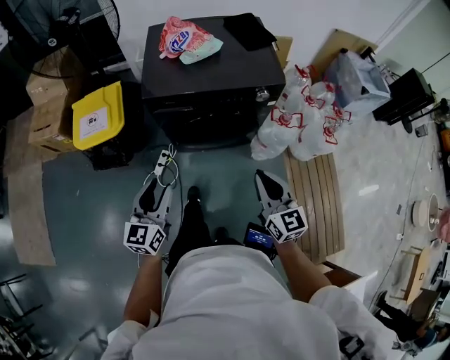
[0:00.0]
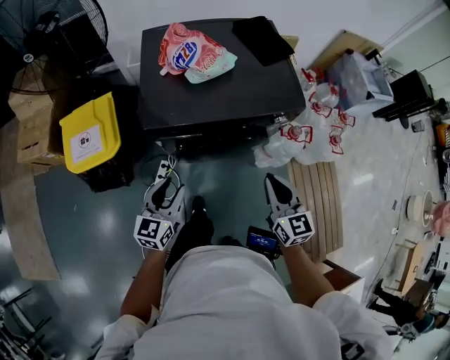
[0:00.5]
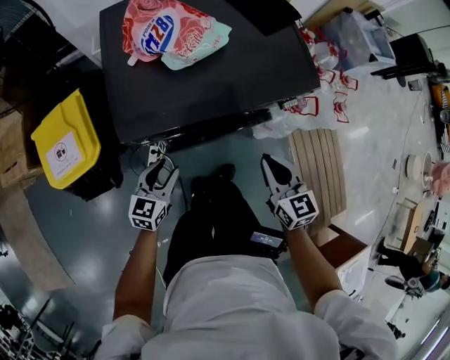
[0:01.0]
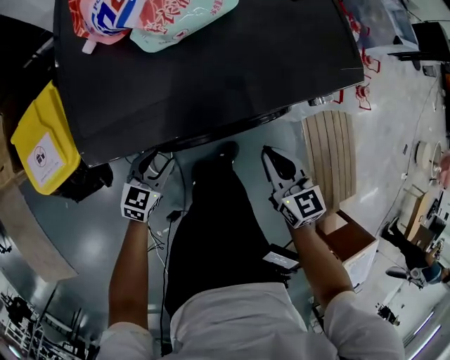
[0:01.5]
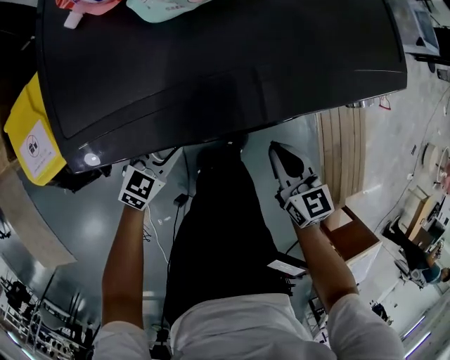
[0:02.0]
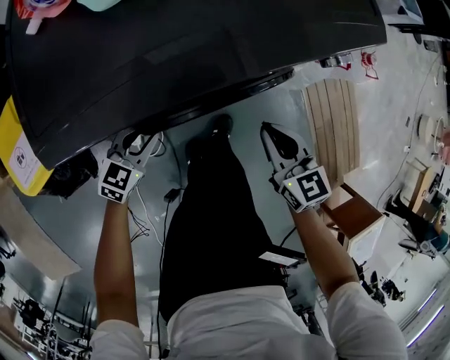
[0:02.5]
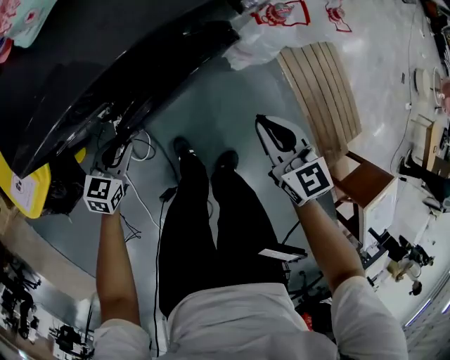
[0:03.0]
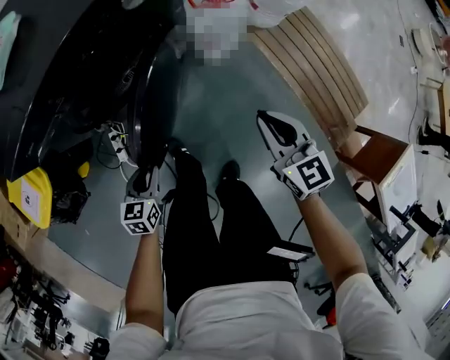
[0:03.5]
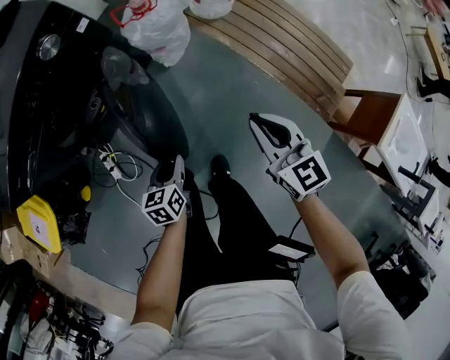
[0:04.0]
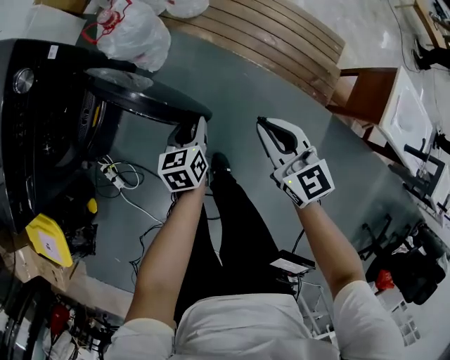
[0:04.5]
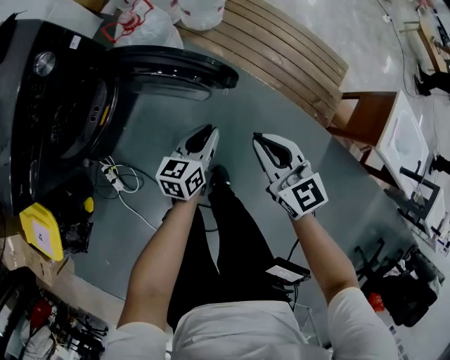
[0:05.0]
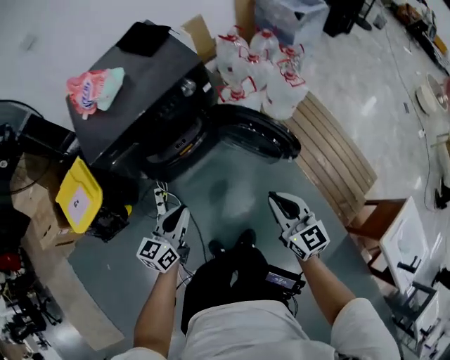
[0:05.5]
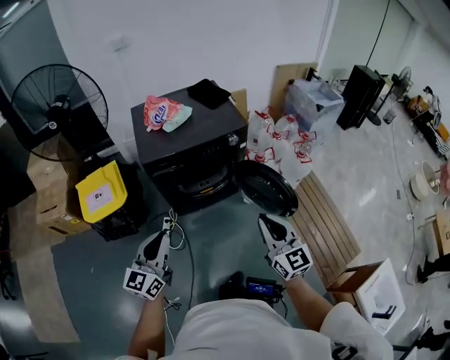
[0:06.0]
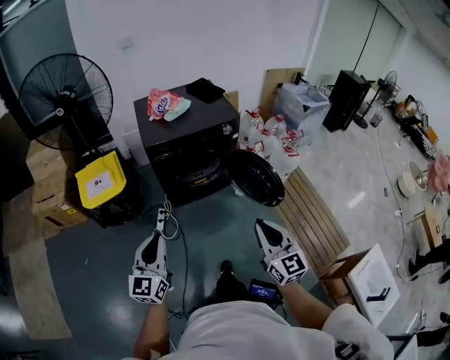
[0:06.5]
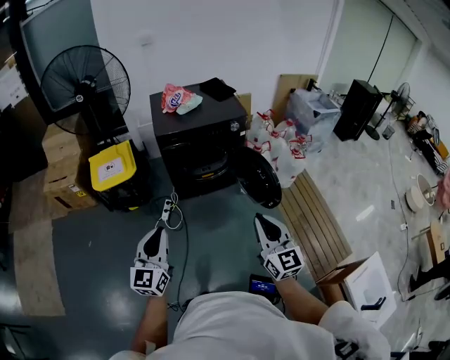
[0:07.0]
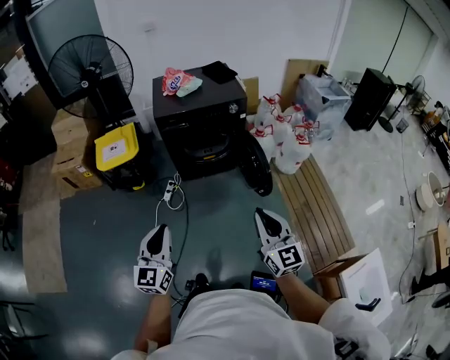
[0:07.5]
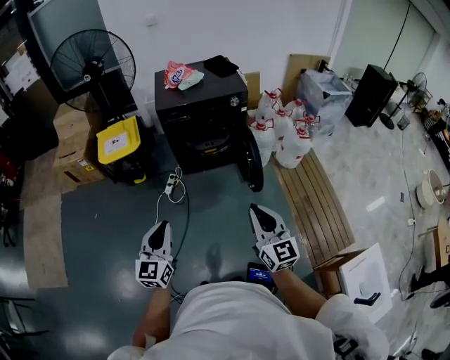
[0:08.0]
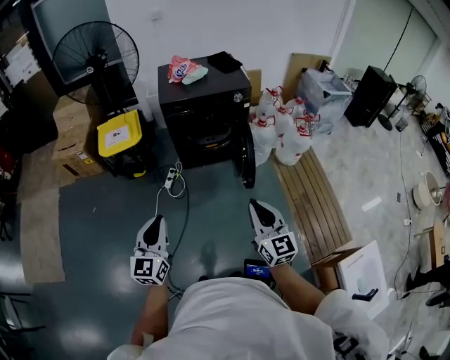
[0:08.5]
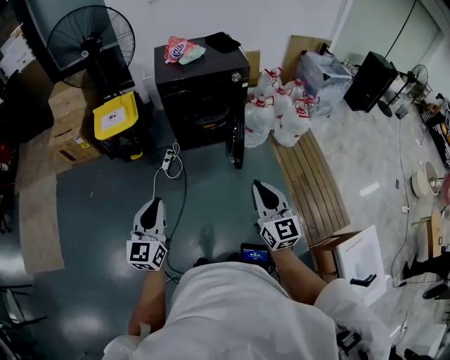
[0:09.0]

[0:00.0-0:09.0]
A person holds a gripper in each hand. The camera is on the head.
0:00.0 to 0:02.0: The two grippers go about 40 cm downward and forward. The right gripper rotates some 30 degrees; the left gripper rotates roughly 50 degrees.
0:02.0 to 0:04.5: The two grippers travel together, about 60 cm. The right gripper changes its angle by about 40 degrees.
0:04.5 to 0:07.0: The left gripper changes place by about 80 cm, and points its fingers approximately 40 degrees further upward. Meanwhile the right gripper heads upward, covering roughly 40 cm, and rotates about 40 degrees.
0:07.0 to 0:09.0: Both grippers move backward, roughly 10 cm.

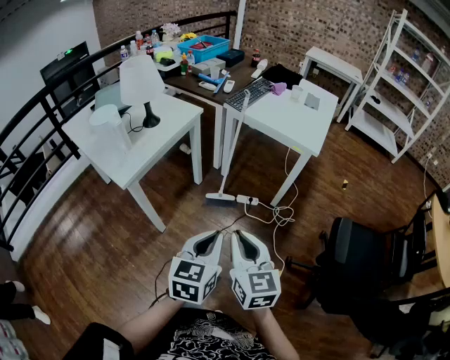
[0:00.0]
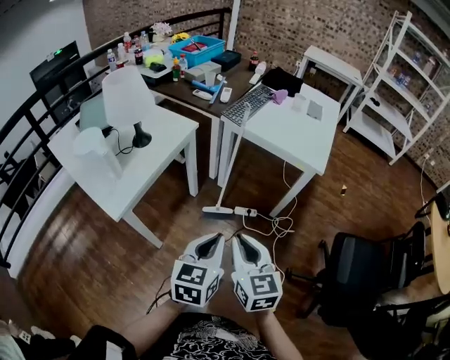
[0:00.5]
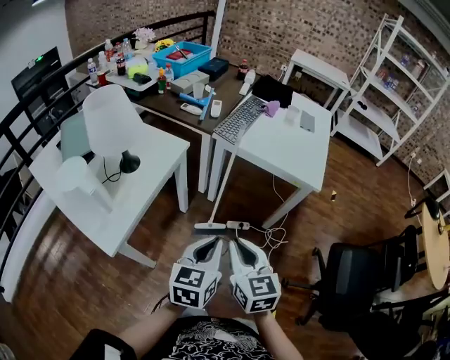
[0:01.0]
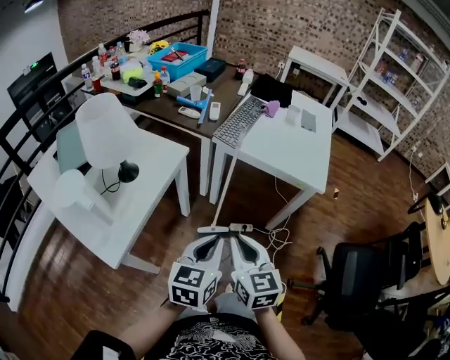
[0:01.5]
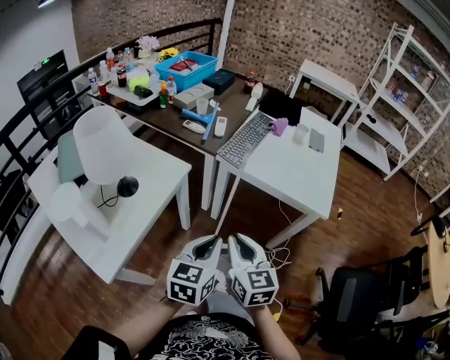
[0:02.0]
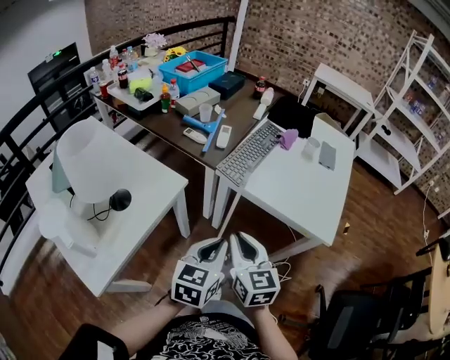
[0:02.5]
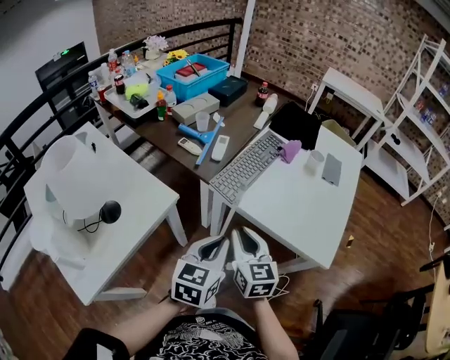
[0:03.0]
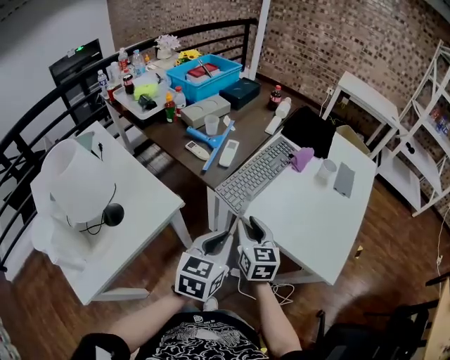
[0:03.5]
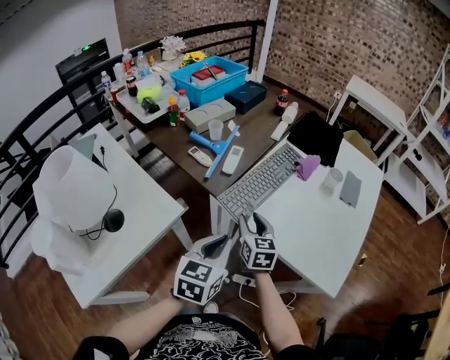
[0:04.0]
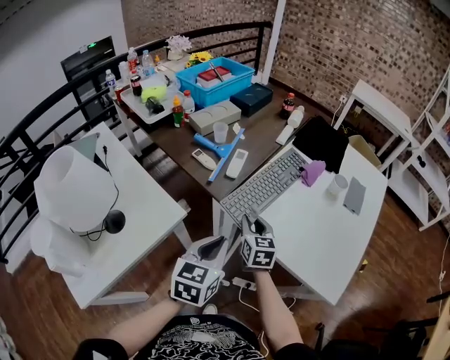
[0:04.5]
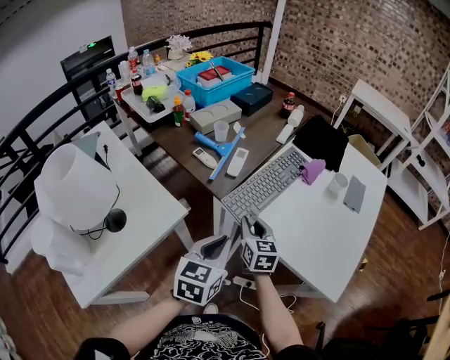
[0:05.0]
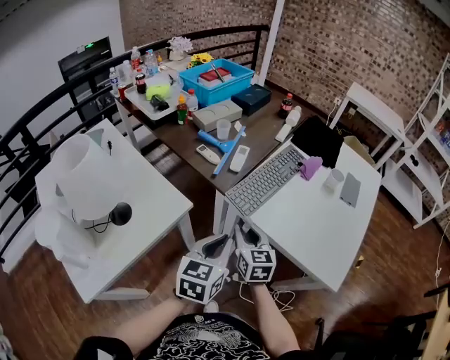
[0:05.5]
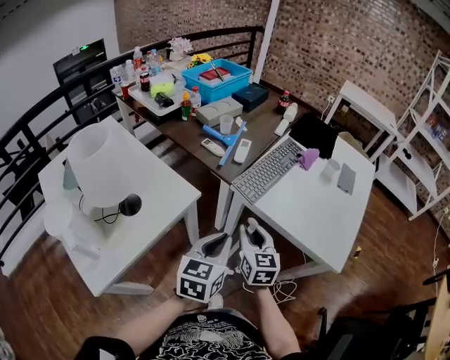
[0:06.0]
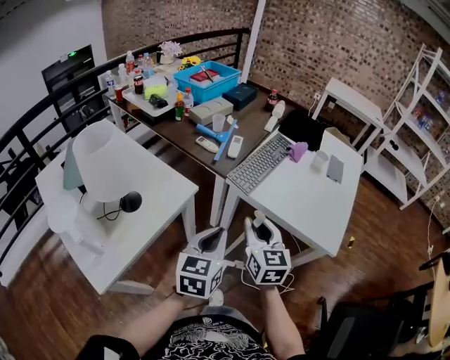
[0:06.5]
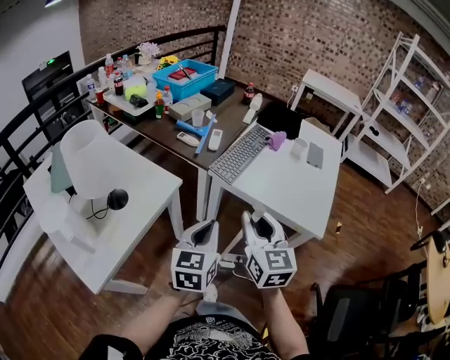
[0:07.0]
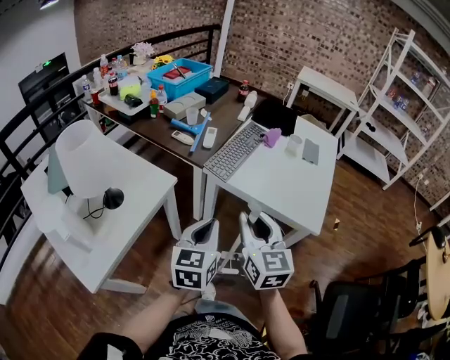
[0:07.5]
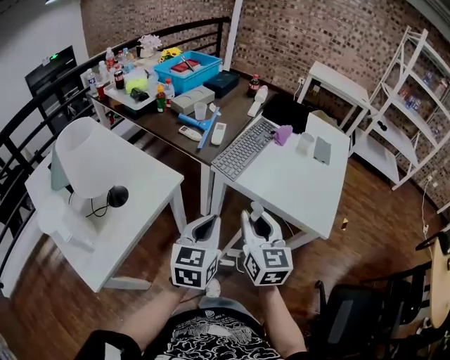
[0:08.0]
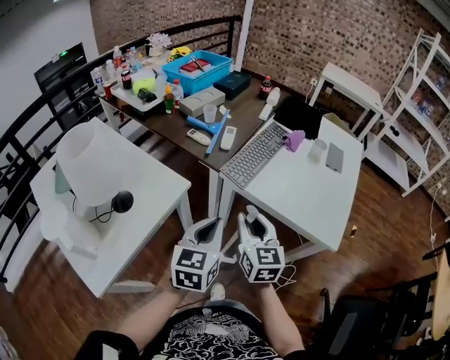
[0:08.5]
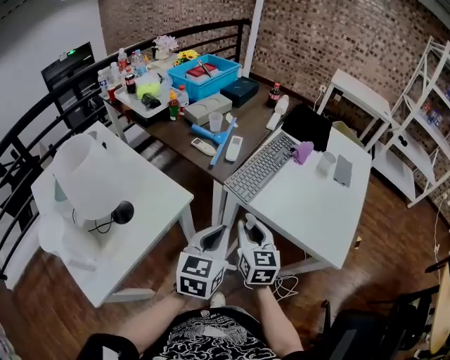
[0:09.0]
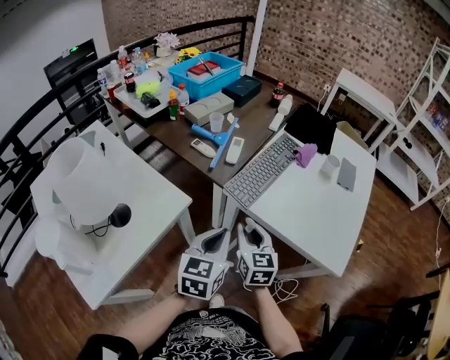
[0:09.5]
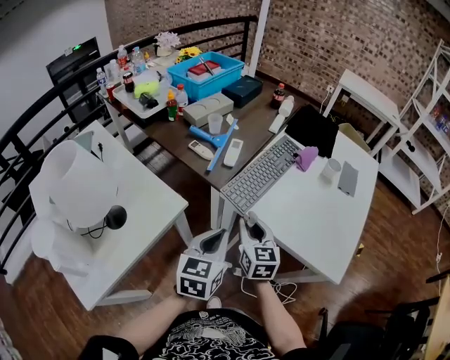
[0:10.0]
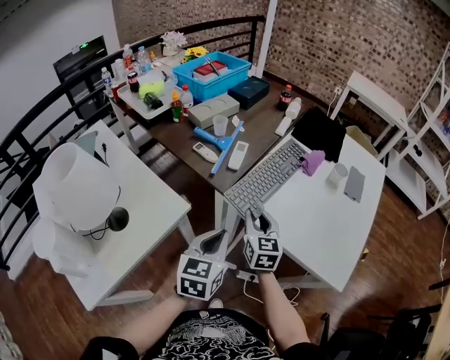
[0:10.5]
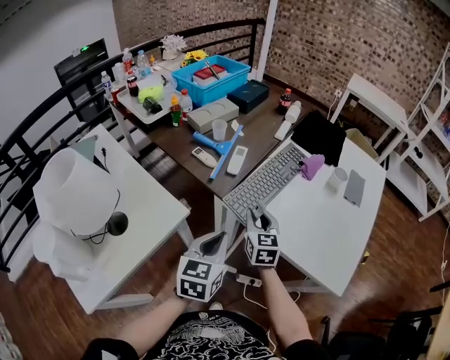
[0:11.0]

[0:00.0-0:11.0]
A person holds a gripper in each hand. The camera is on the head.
0:00.0 to 0:02.0: The grippers both shift forward by some 35 cm.
0:02.0 to 0:03.5: The grippers both shift forward by roughly 25 cm.
0:03.5 to 0:05.5: The right gripper reaches about 10 cm forward, then returns.
0:05.5 to 0:07.5: The left gripper moves backward, about 15 cm. Meanwhile the right gripper moves backward and upward, some 25 cm.
0:07.5 to 0:09.0: The left gripper shifts approximately 10 cm forward, while the right gripper travels forward and downward by roughly 20 cm.
0:09.0 to 0:11.0: The right gripper travels forward by about 15 cm, while the left gripper travels forward by roughly 10 cm.

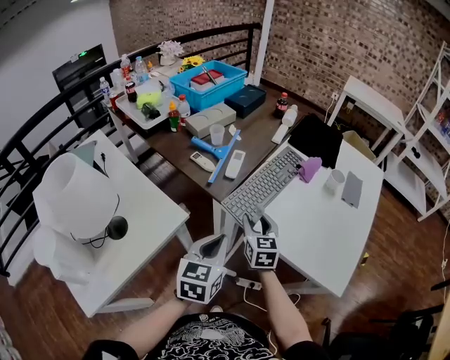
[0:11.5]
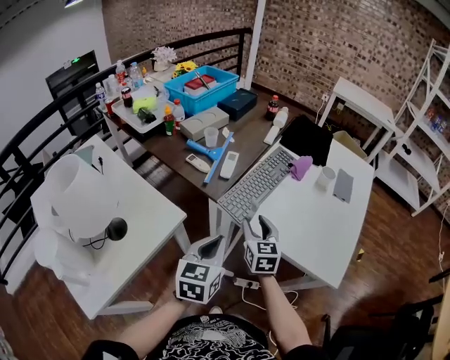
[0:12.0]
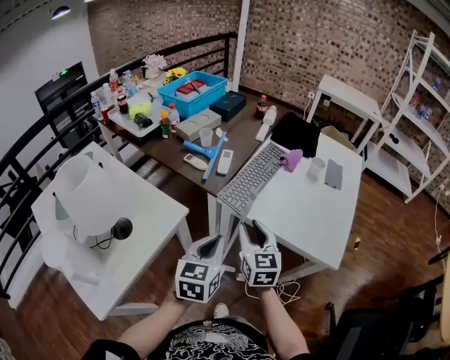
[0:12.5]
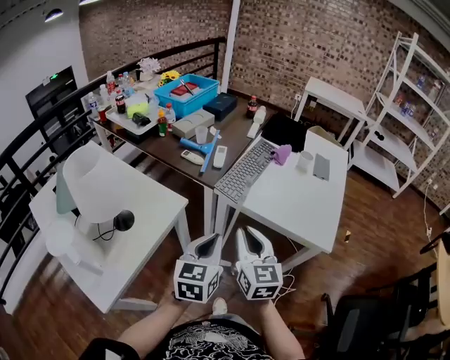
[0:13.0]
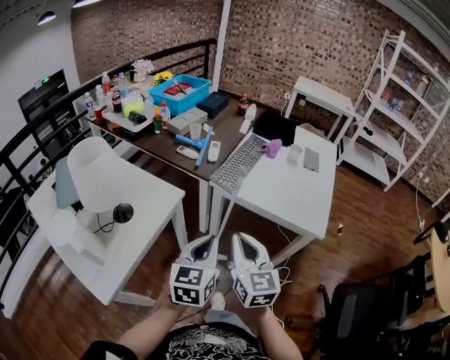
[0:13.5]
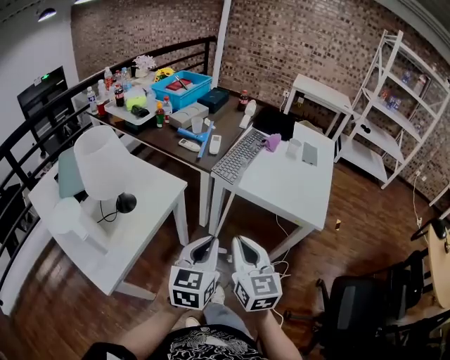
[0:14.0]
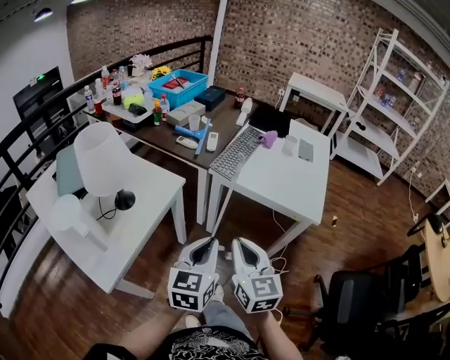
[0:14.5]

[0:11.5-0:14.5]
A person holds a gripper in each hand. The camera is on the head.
0:11.5 to 0:13.0: The left gripper shifts roughly 15 cm backward. The right gripper goes some 30 cm backward and upward, and closes.
0:13.0 to 0:14.5: The two grippers go about 15 cm backward.

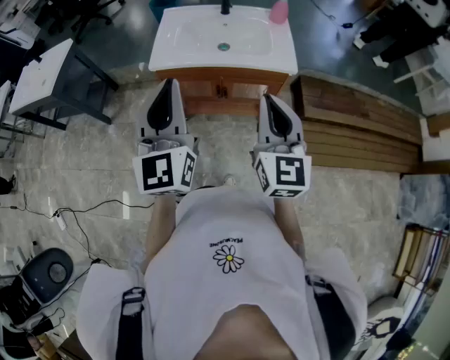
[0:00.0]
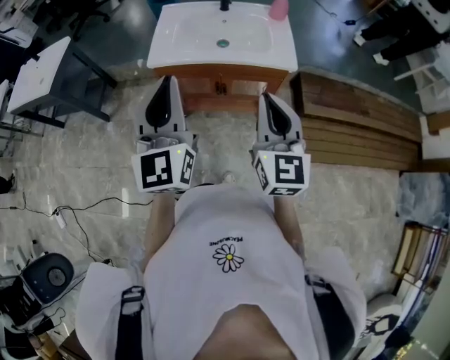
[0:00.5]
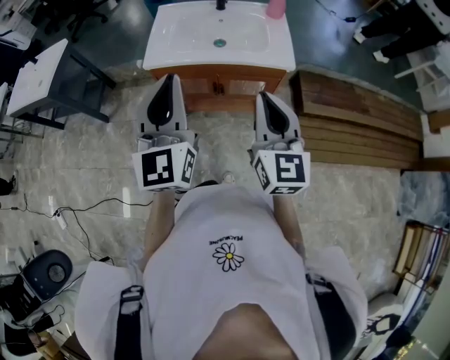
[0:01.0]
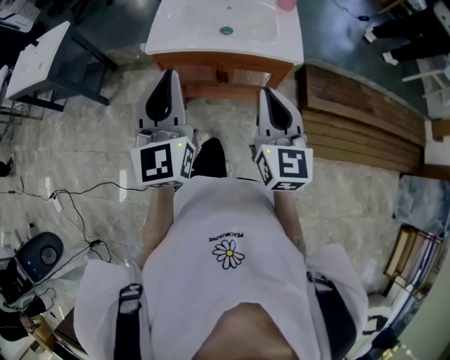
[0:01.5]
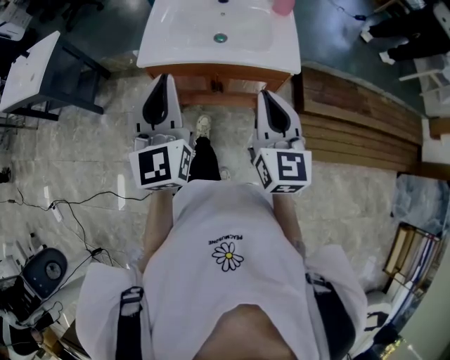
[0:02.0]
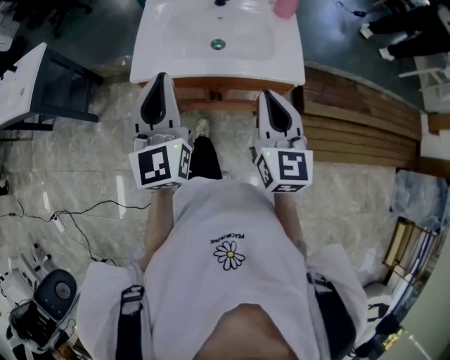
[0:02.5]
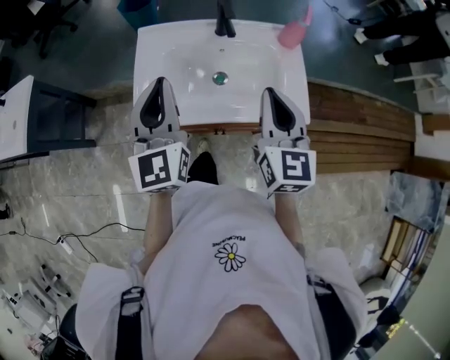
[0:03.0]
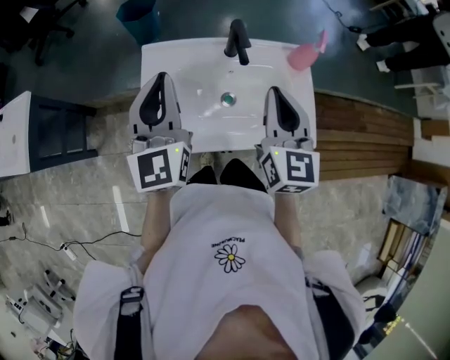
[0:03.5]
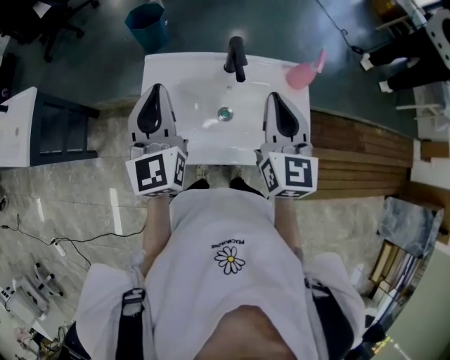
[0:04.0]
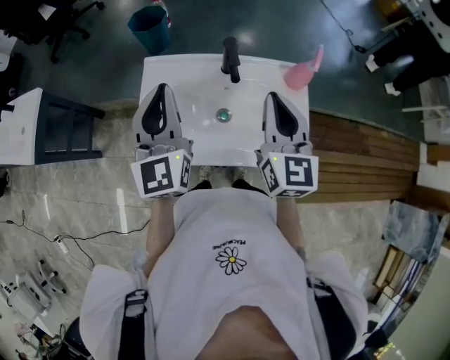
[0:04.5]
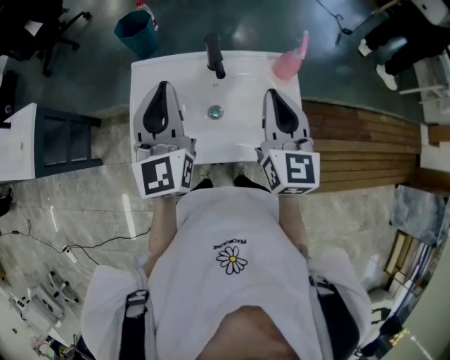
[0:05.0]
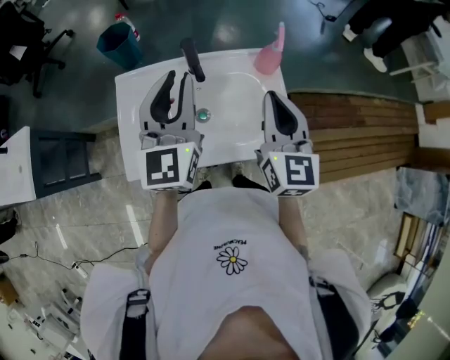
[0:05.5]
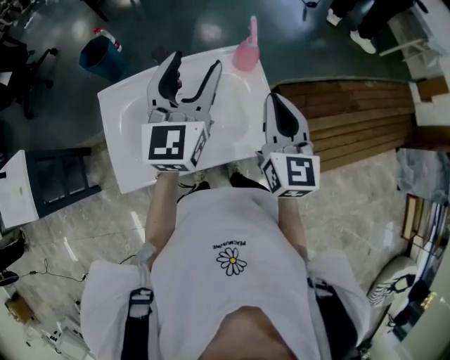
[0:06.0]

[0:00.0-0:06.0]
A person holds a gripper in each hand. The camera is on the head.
0:00.0 to 0:02.0: The two grippers go approximately 5 cm forward.
0:02.0 to 0:04.0: Both grippers travel together forward, some 35 cm.
0:04.0 to 0:06.0: The left gripper heads to the right, covering roughly 25 cm, changes its angle by approximately 30 degrees, and opens, while the right gripper heads to the right, covering some 15 cm.
